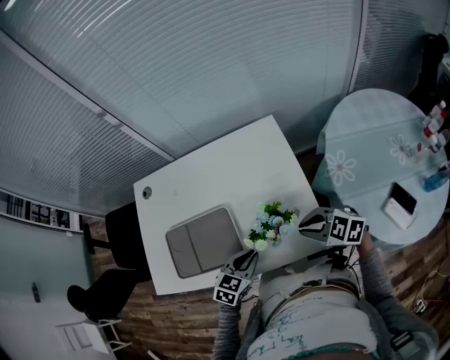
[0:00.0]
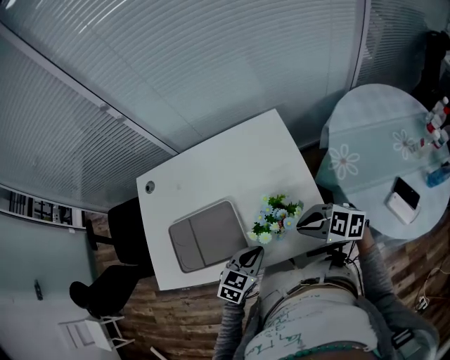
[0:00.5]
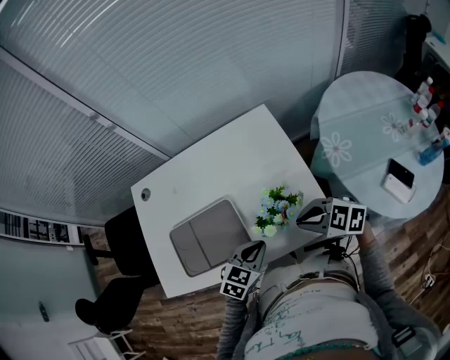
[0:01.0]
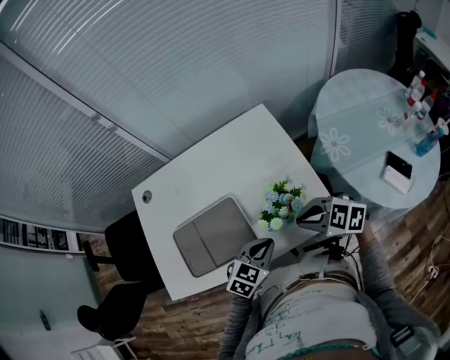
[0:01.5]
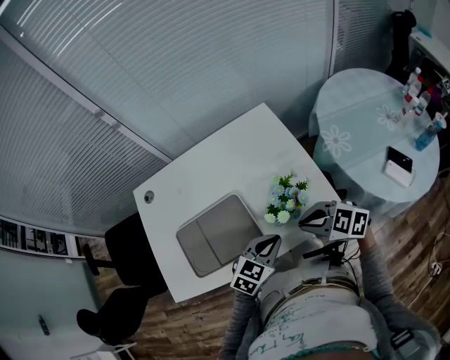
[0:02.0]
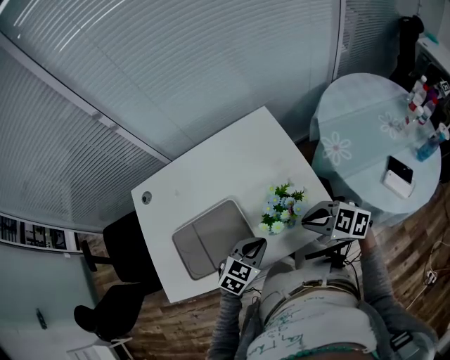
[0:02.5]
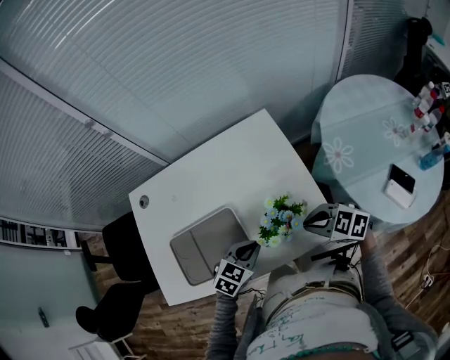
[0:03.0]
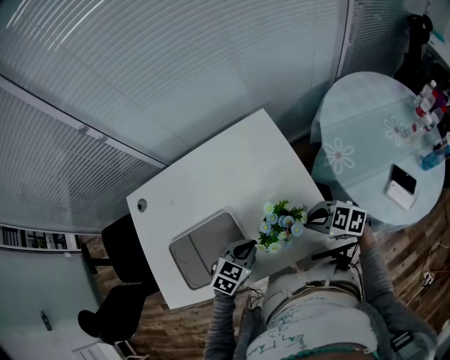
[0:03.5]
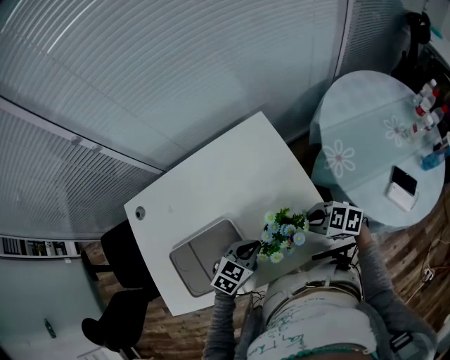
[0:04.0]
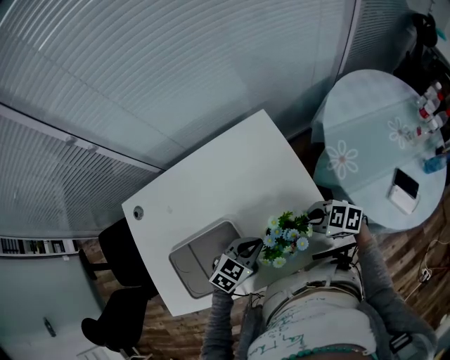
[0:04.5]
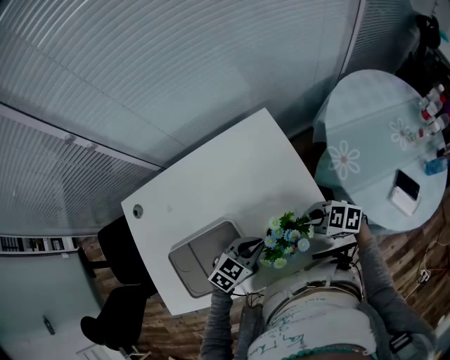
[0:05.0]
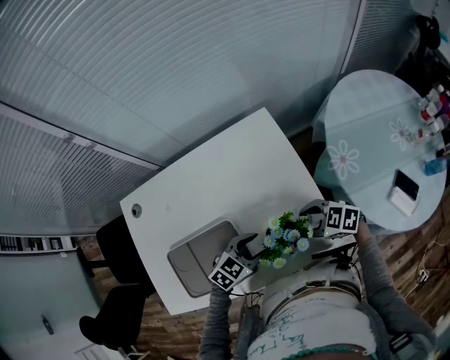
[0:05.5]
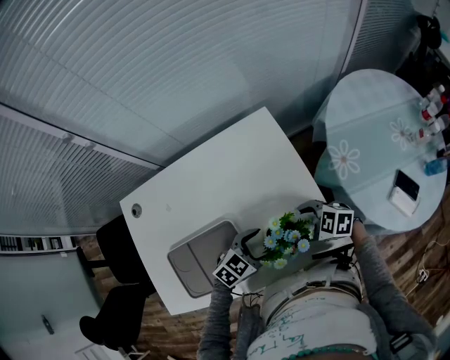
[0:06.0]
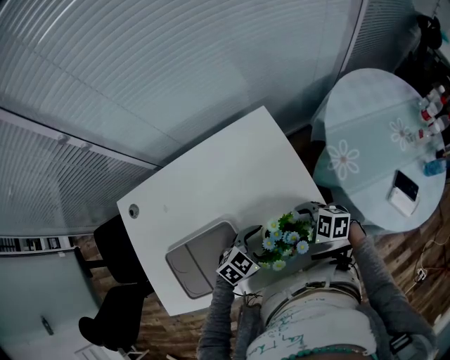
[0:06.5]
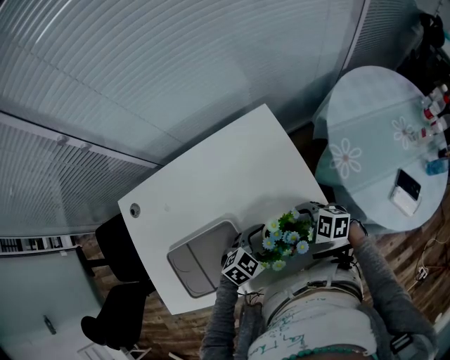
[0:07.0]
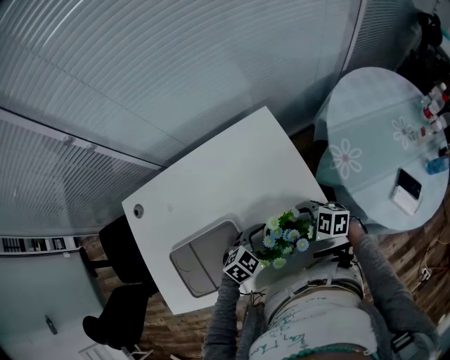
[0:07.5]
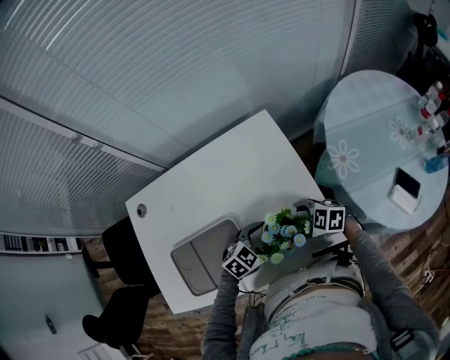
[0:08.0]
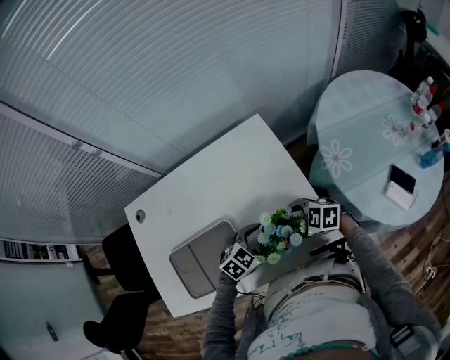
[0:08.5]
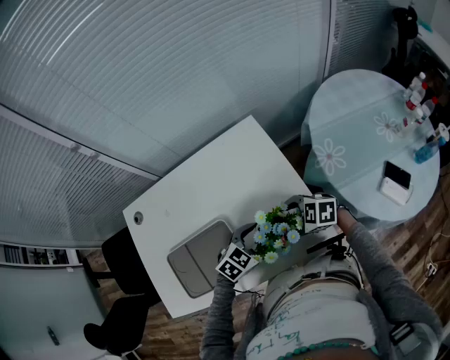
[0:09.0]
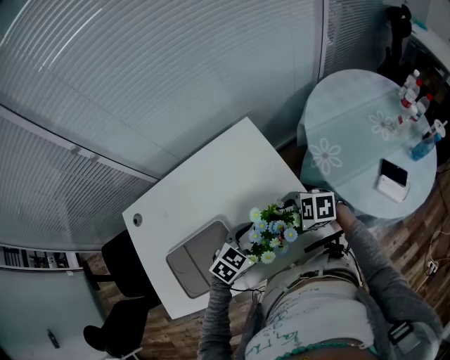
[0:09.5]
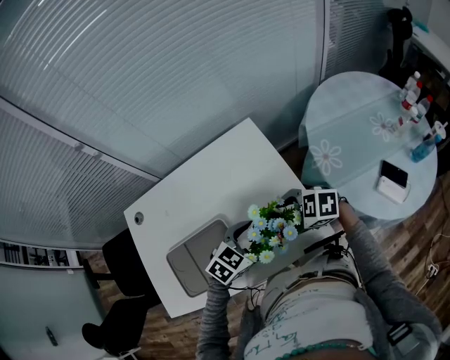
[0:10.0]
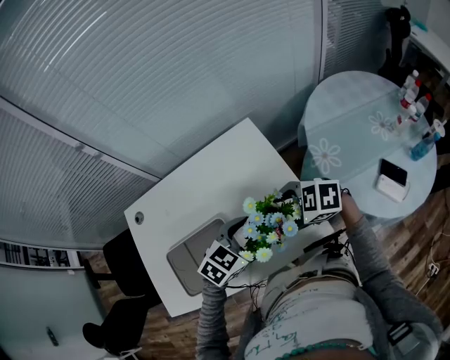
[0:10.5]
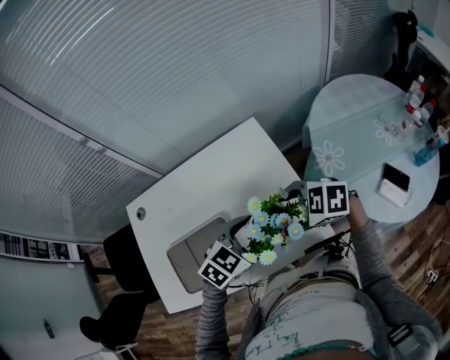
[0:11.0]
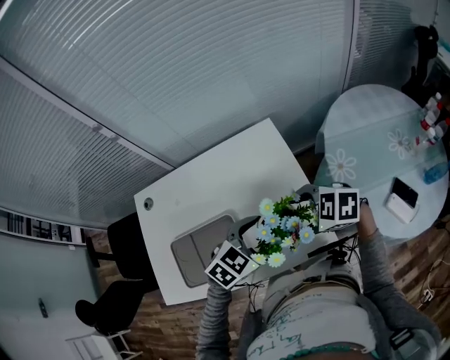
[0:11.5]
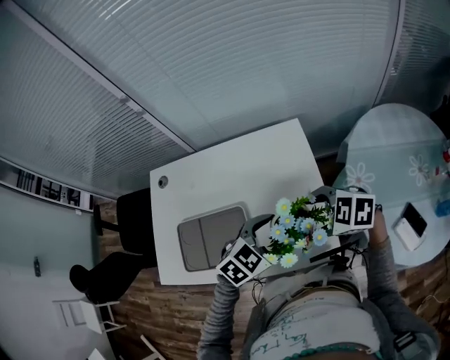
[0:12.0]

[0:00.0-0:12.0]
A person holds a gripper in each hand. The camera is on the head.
0:00.0 to 0:02.0: The right gripper shifts by some 10 cm.
0:02.0 to 0:04.0: The right gripper changes place by some 15 cm, while the left gripper moves approximately 10 cm.
0:04.0 to 0:06.0: The right gripper opens its fingers. Meanwhile the left gripper opens.
0:06.0 to 0:08.0: The grippers stay close to where they were, moving slightly.
0:08.0 to 0:10.0: The two grippers go approximately 10 cm upward.
0:10.0 to 0:12.0: Both grippers move upward, approximately 5 cm.

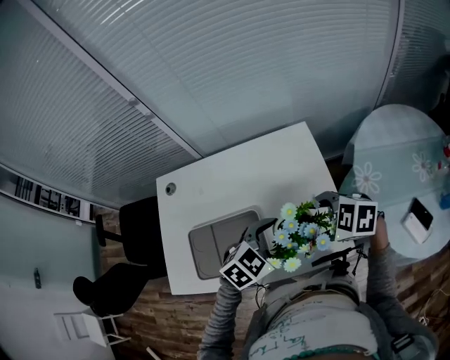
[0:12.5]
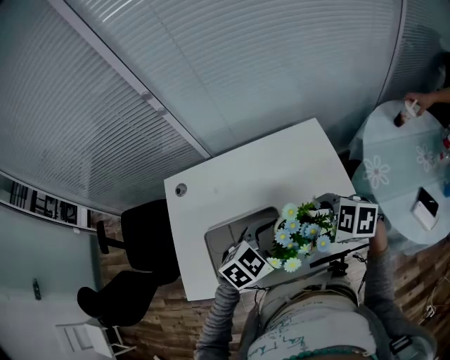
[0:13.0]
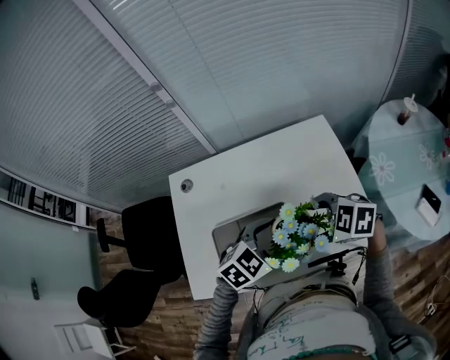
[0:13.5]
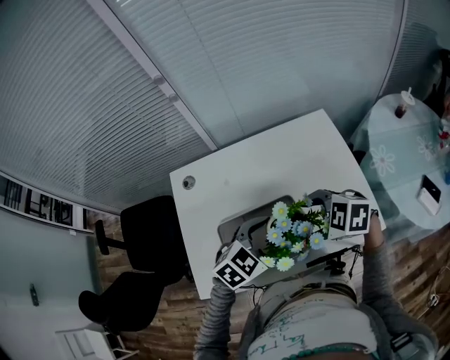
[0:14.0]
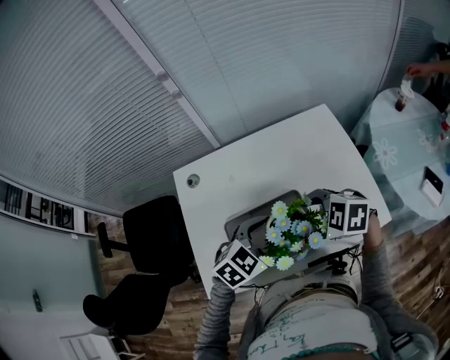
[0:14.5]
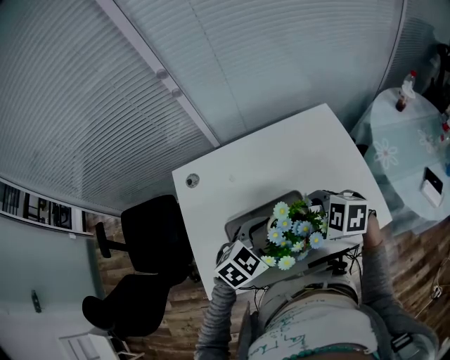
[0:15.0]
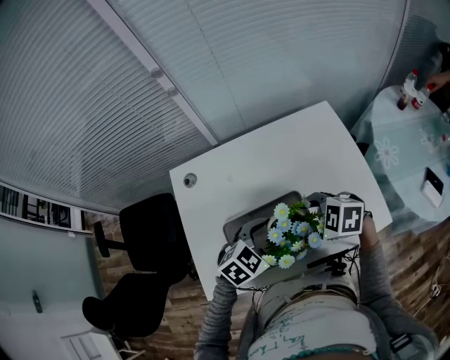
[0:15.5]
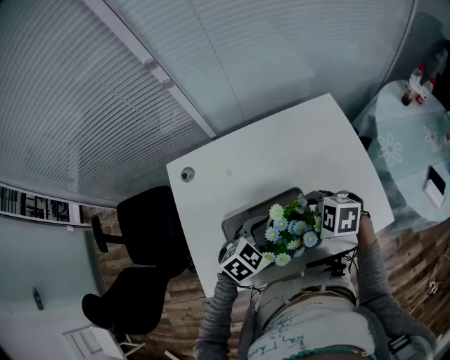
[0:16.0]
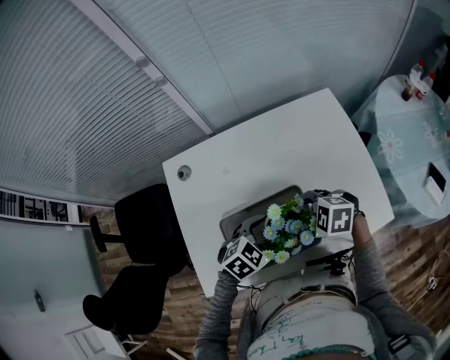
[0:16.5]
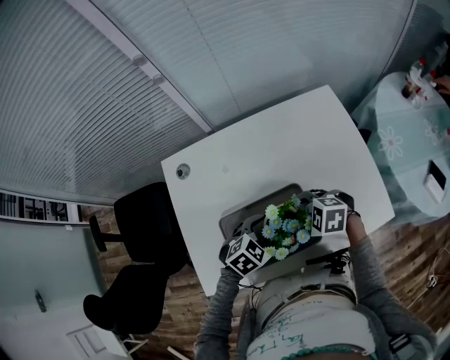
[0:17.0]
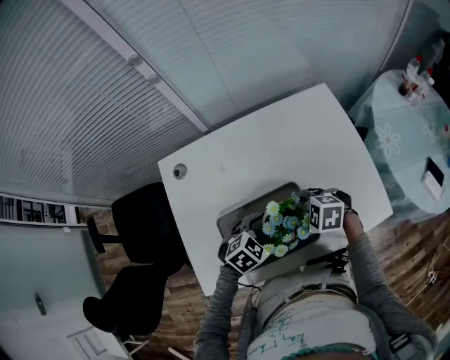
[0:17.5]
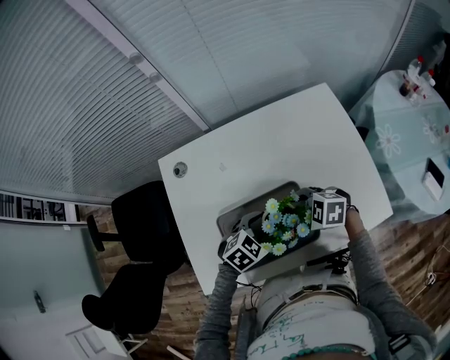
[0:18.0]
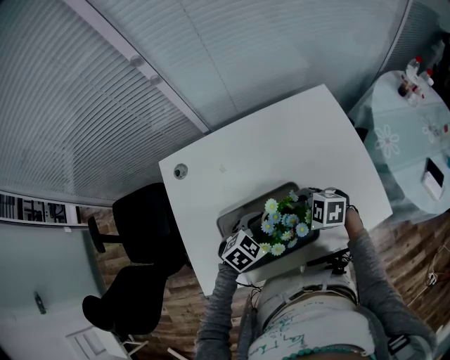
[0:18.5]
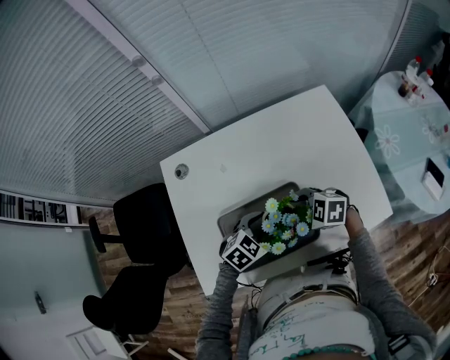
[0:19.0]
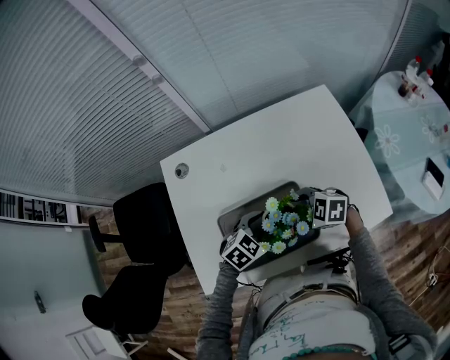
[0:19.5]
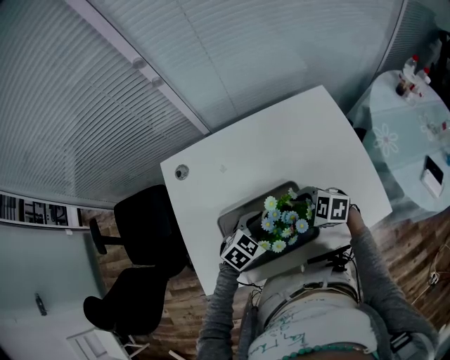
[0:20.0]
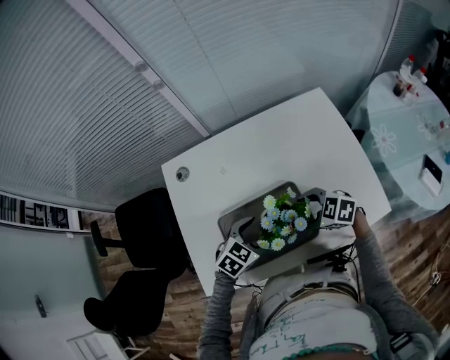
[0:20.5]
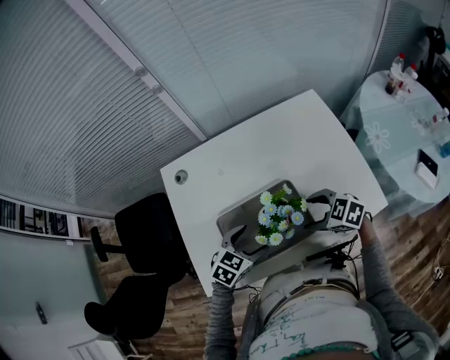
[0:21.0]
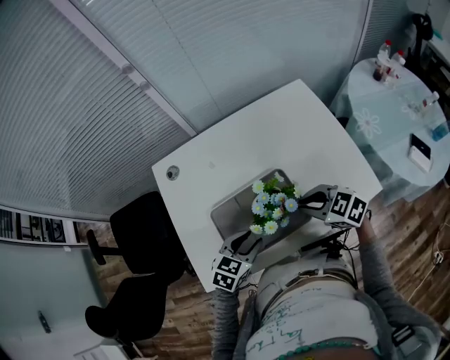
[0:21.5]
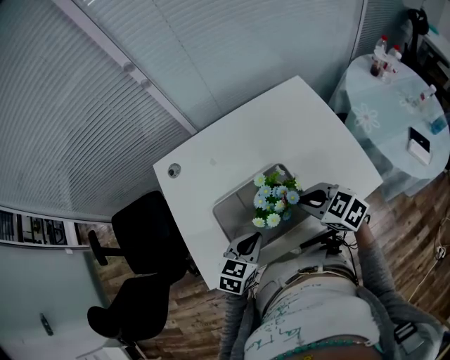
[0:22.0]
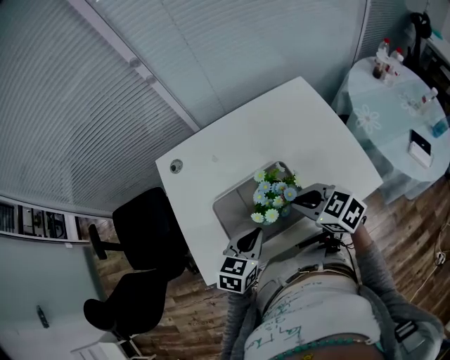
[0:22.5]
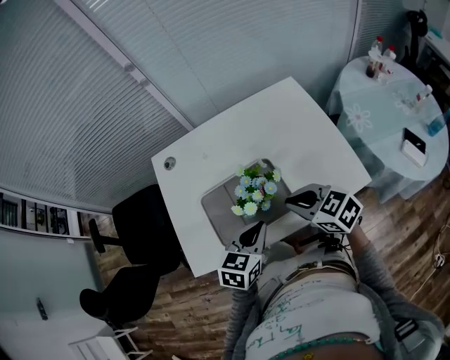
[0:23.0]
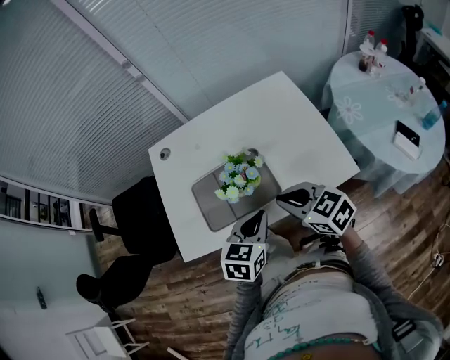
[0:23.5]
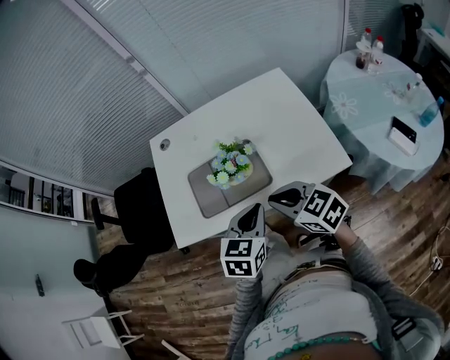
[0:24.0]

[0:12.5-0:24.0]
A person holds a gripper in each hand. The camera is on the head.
0:12.5 to 0:14.5: The left gripper shifts by about 20 cm, while the right gripper changes place by about 20 cm.
0:14.5 to 0:16.5: The grippers both shift downward by about 10 cm.
0:16.5 to 0:20.0: The grippers stay close to where they were, moving slightly.
0:20.0 to 0:22.0: The left gripper ends up about 10 cm from where it was, turns by about 20 degrees, and closes up. Meanwhile the right gripper travels upward by some 10 cm, swivels about 30 degrees, and closes.
0:22.0 to 0:24.0: The left gripper shifts approximately 20 cm to the right, backward and upward, and swivels roughly 20 degrees. The right gripper travels backward and upward by about 15 cm.

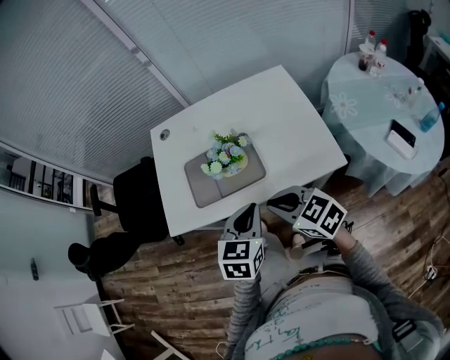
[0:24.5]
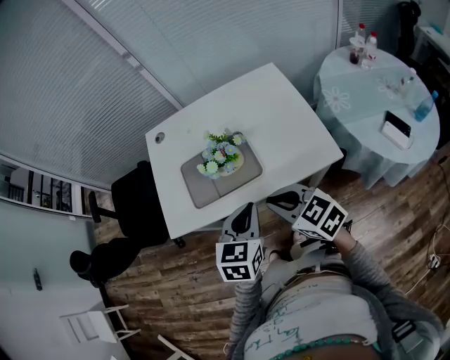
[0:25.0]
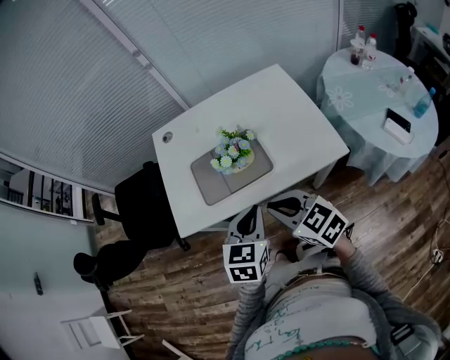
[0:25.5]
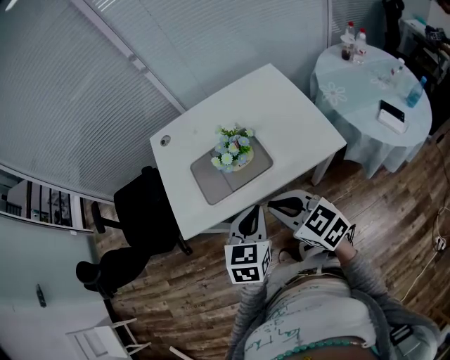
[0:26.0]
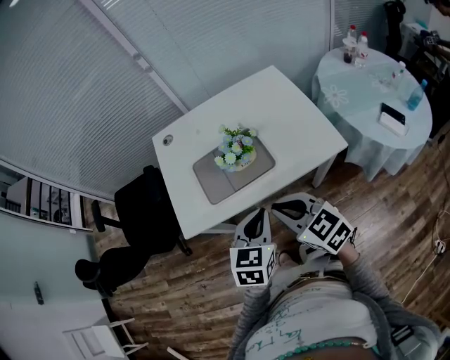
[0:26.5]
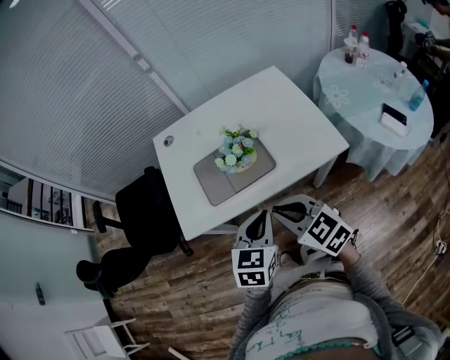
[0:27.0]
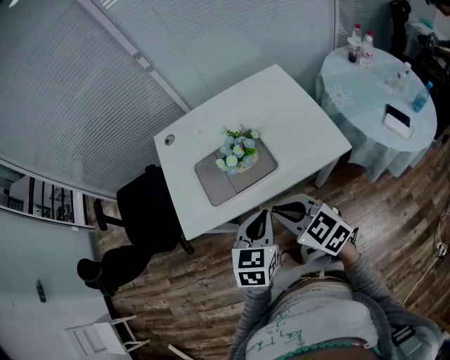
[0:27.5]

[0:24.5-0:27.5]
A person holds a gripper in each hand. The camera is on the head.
0:24.5 to 0:26.0: The grippers both shift to the left by some 5 cm.
0:26.0 to 0:27.5: The grippers move only a little.
